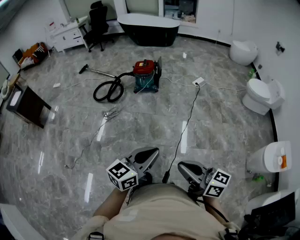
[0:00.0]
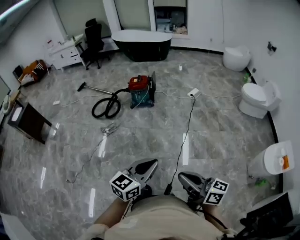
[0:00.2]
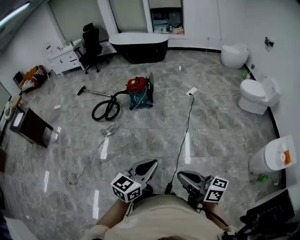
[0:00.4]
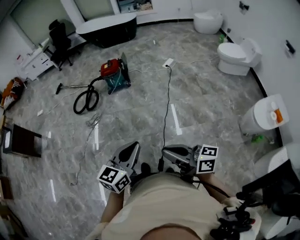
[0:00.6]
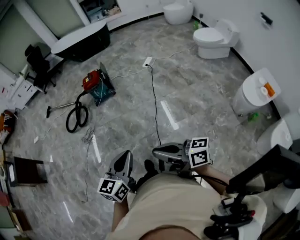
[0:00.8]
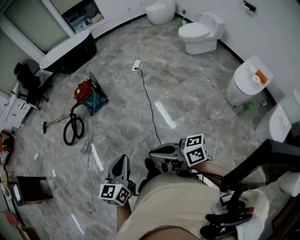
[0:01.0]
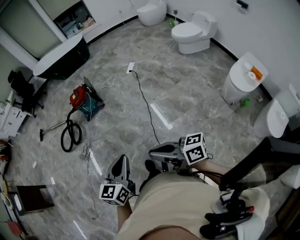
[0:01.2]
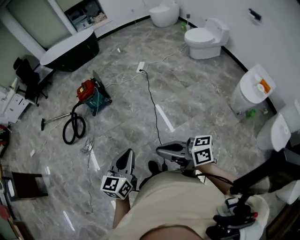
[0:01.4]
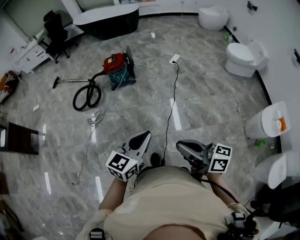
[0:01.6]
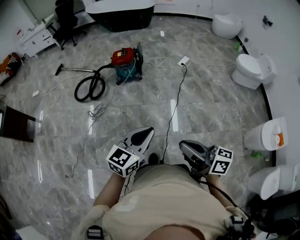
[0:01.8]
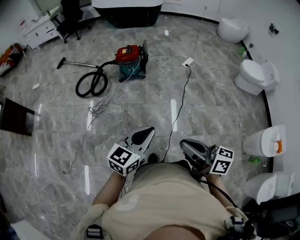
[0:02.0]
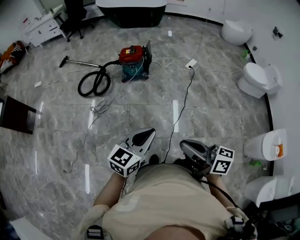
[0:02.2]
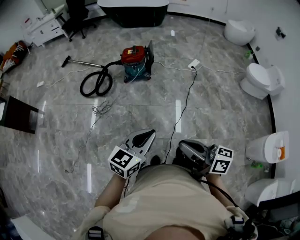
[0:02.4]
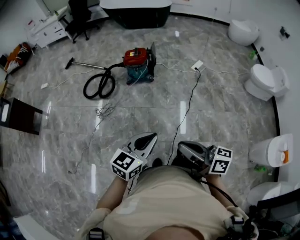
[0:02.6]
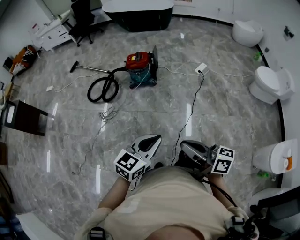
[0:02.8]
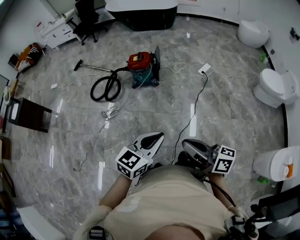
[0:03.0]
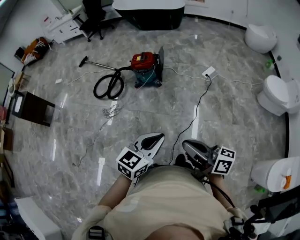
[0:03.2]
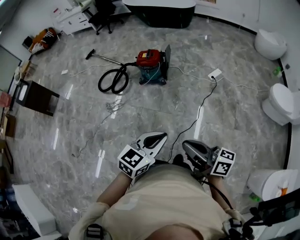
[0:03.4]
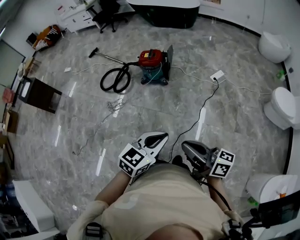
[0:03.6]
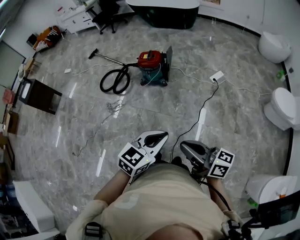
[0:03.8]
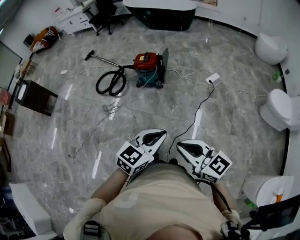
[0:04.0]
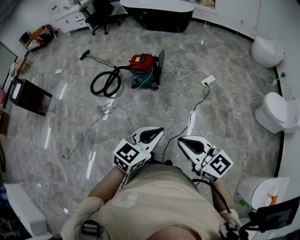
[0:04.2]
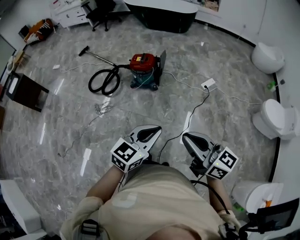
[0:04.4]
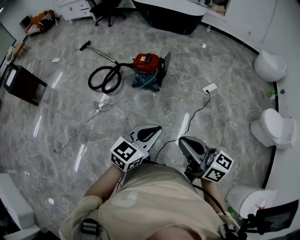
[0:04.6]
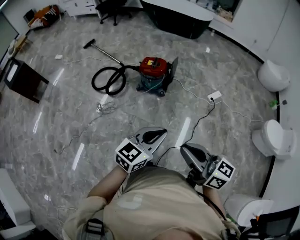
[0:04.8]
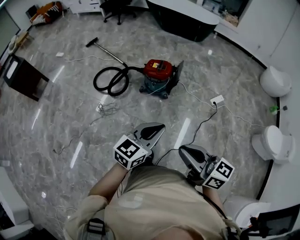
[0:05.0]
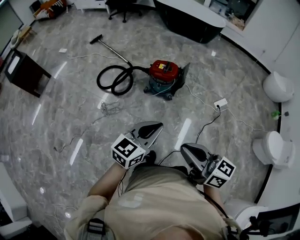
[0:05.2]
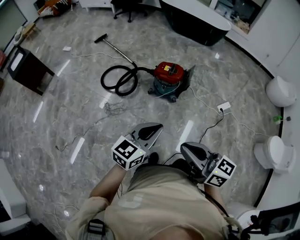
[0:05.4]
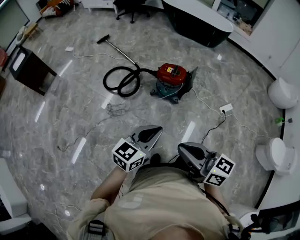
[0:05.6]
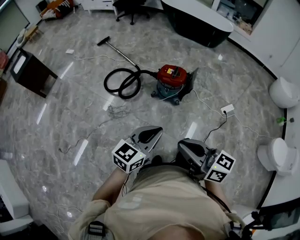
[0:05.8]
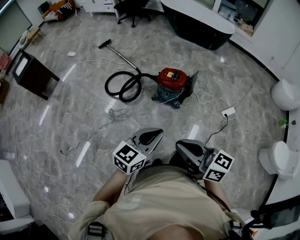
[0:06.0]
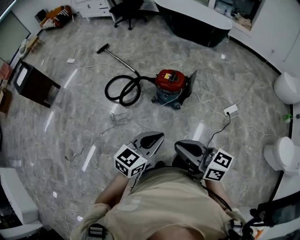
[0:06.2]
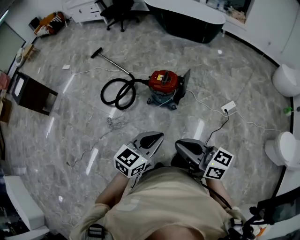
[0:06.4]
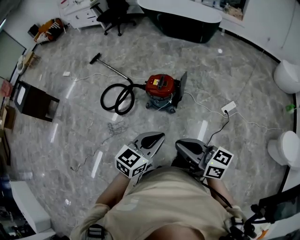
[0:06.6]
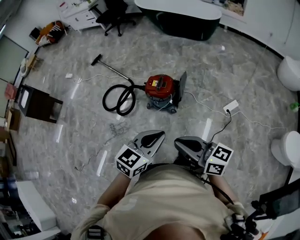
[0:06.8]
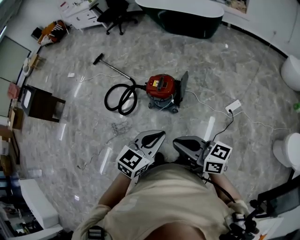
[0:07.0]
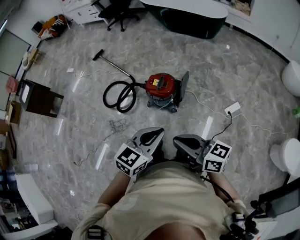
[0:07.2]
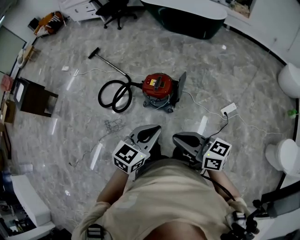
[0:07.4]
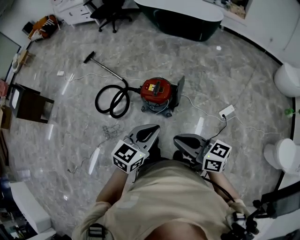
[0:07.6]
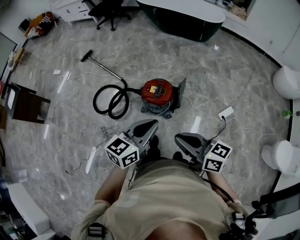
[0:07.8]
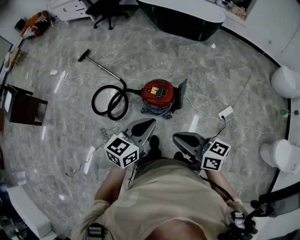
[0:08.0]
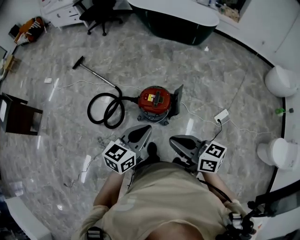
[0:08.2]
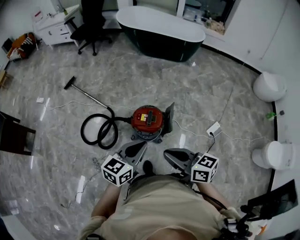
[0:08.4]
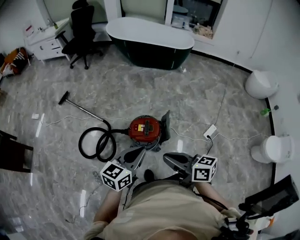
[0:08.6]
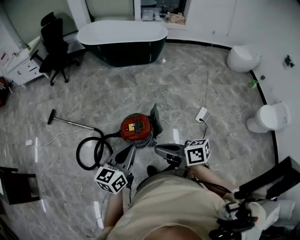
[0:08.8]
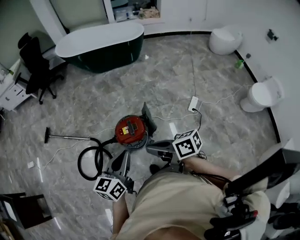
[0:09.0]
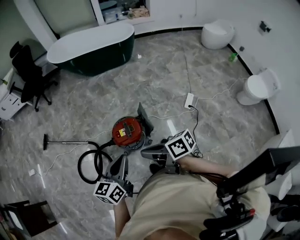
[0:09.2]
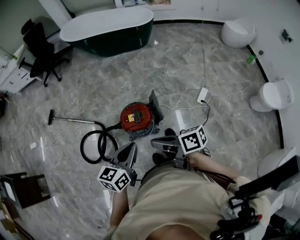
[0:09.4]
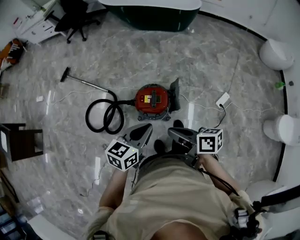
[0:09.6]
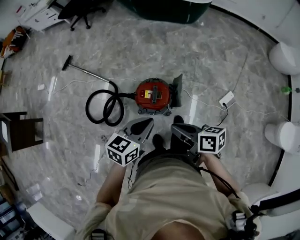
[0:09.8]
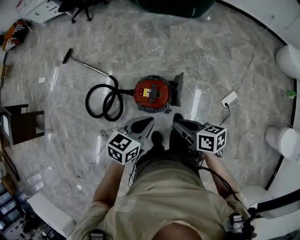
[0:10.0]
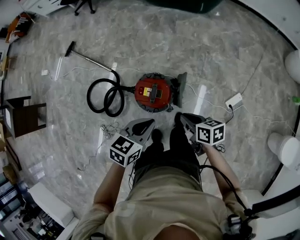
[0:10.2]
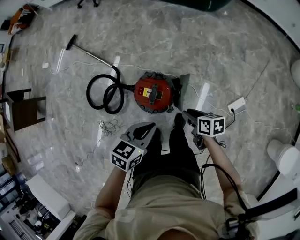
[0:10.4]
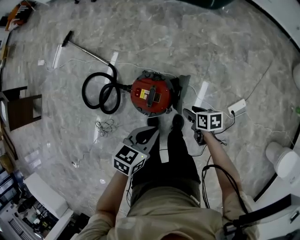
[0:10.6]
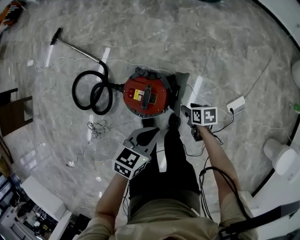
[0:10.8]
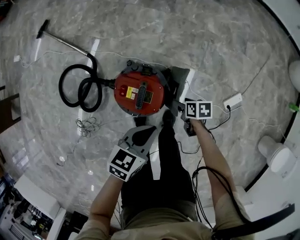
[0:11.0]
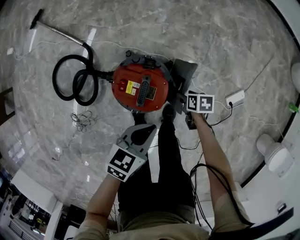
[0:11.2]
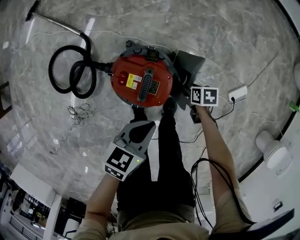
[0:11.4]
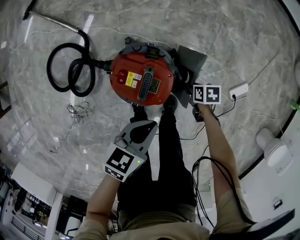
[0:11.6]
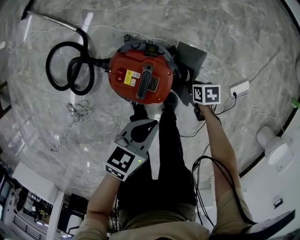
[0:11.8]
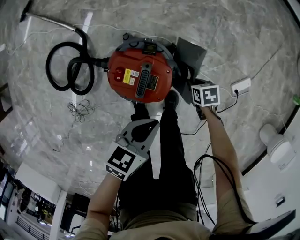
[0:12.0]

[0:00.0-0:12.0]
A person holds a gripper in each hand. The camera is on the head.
0:00.0 to 0:01.6: The grippers both shift forward by approximately 10 cm.
0:01.6 to 0:03.0: Both grippers travel together forward, approximately 15 cm.
0:03.0 to 0:04.4: The two grippers go roughly 15 cm forward and to the right. The right gripper turns by roughly 30 degrees.
0:04.4 to 0:06.0: The grippers both shift forward and to the left by about 30 cm.
0:06.0 to 0:07.6: Both grippers travel together forward and to the right, roughly 30 cm.
0:07.6 to 0:09.0: Both grippers travel together forward and to the left, roughly 20 cm. The right gripper swivels about 30 degrees.
0:09.0 to 0:10.4: The right gripper travels downward, forward and to the right by roughly 40 cm, and changes its angle by some 30 degrees, while the left gripper moves downward, to the right and forward, about 25 cm, and rotates approximately 30 degrees.
0:10.4 to 0:12.0: The grippers both shift downward by approximately 30 cm. The right gripper tips its fingers downward by roughly 30 degrees, and opens and closes again.

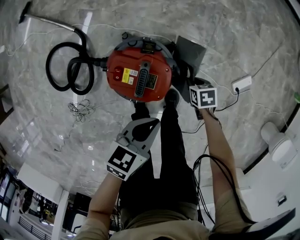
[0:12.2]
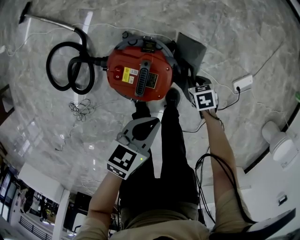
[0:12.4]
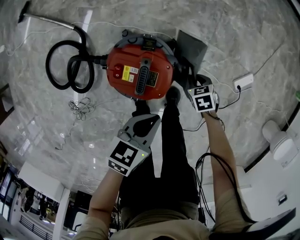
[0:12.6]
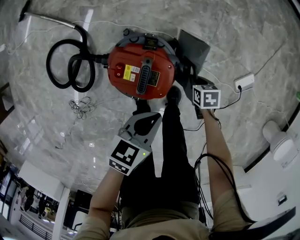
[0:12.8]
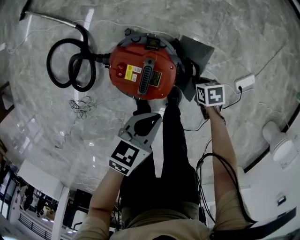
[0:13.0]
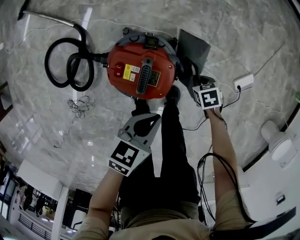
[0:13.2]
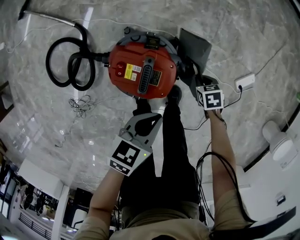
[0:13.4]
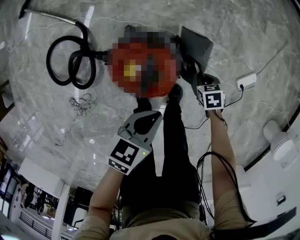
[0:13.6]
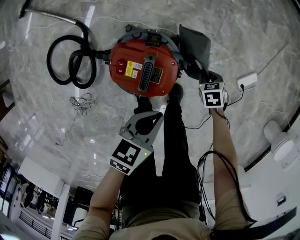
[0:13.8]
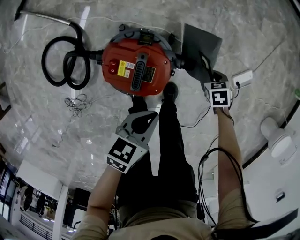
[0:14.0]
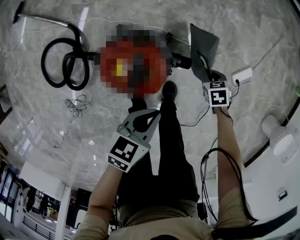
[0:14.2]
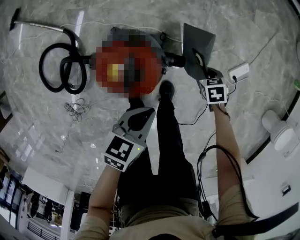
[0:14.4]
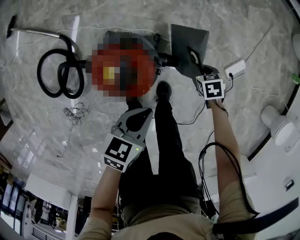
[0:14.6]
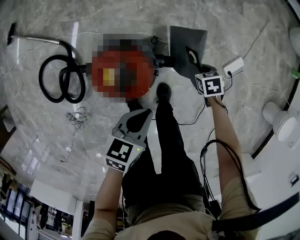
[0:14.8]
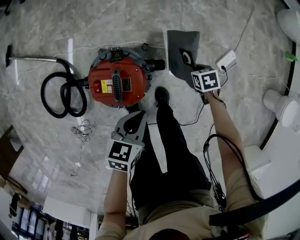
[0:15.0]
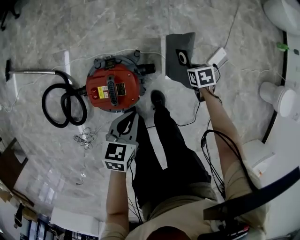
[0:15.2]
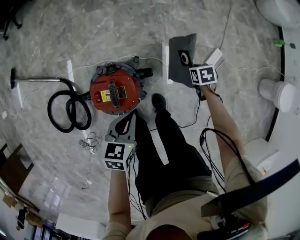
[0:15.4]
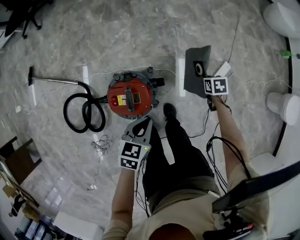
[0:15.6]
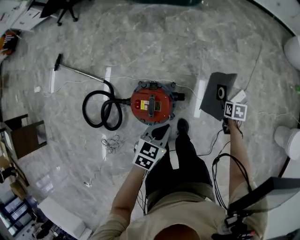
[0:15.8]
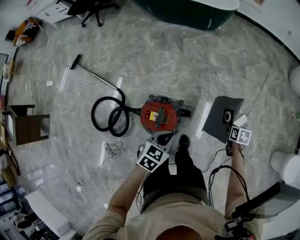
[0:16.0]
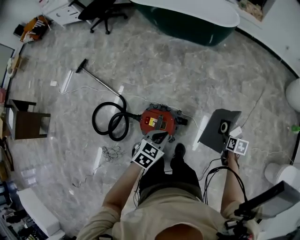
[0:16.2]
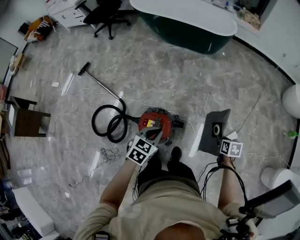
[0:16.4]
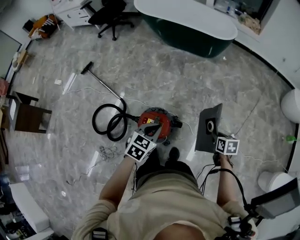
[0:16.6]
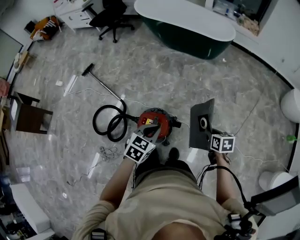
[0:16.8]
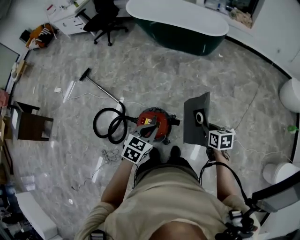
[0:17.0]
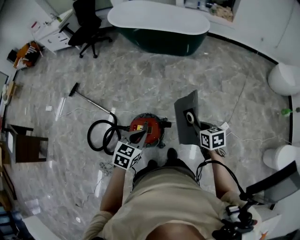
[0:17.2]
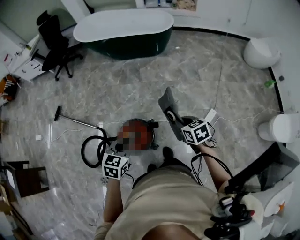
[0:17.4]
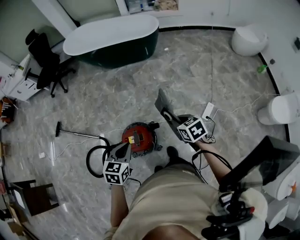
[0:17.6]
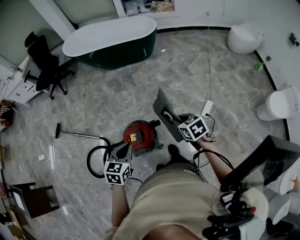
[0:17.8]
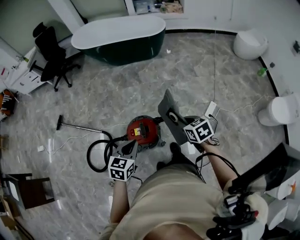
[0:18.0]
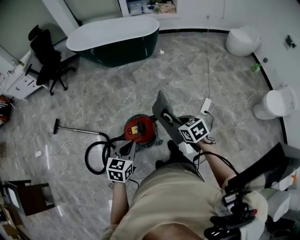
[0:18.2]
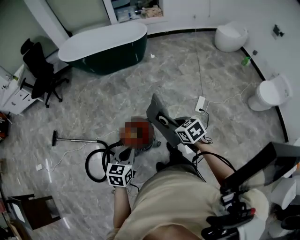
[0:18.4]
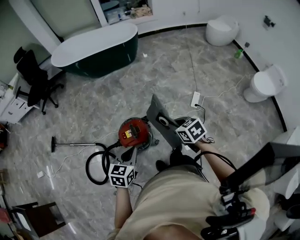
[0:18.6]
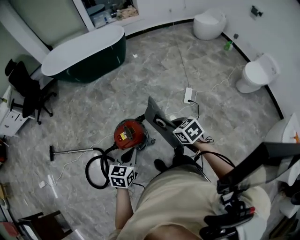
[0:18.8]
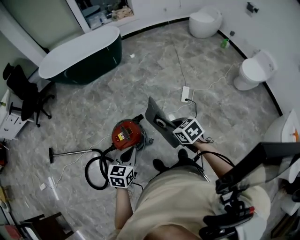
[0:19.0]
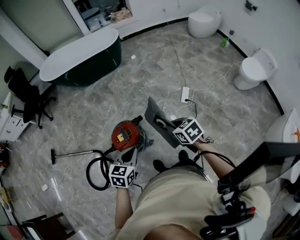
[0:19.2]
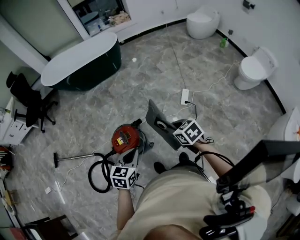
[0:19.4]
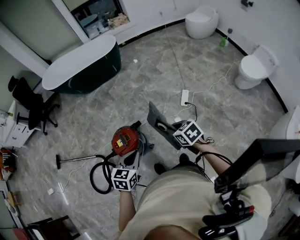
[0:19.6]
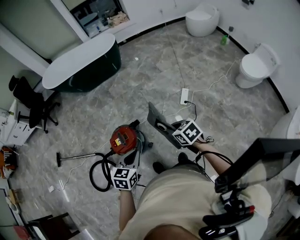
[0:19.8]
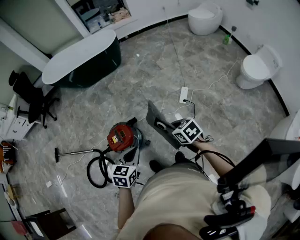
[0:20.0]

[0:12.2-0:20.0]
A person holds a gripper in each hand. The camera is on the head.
0:12.2 to 0:13.8: The grippers make only small movements.
0:13.8 to 0:15.4: The right gripper moves about 20 cm, and swivels some 30 degrees; the left gripper travels upward by approximately 5 cm.
0:15.4 to 0:16.8: Both grippers travel together upward, approximately 30 cm. The right gripper rotates about 30 degrees.
0:16.8 to 0:18.4: The right gripper shifts roughly 25 cm backward, to the left and upward. Meanwhile the left gripper moves backward and to the left, approximately 15 cm.
0:18.4 to 0:20.0: The right gripper moves to the right and backward, roughly 20 cm. Meanwhile the left gripper travels to the right by about 20 cm.

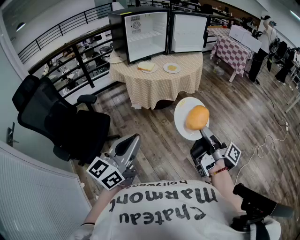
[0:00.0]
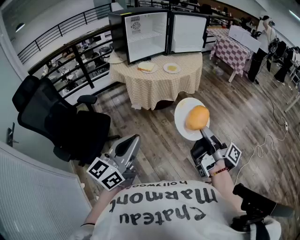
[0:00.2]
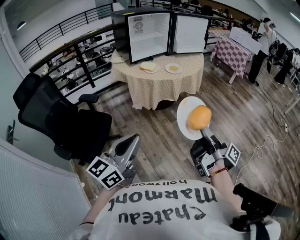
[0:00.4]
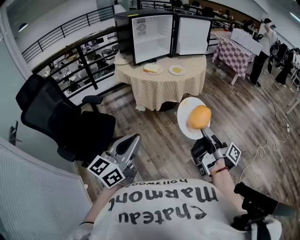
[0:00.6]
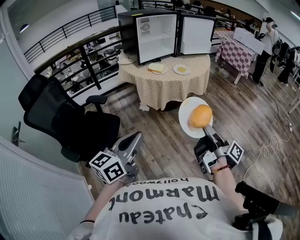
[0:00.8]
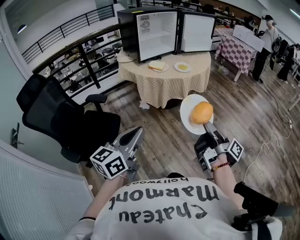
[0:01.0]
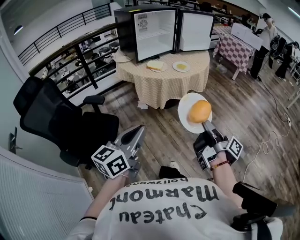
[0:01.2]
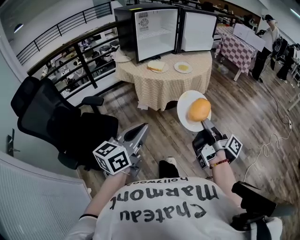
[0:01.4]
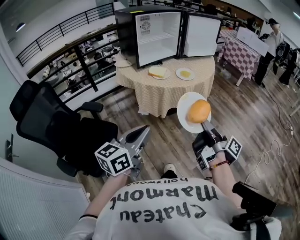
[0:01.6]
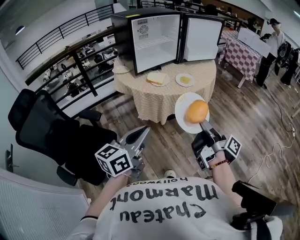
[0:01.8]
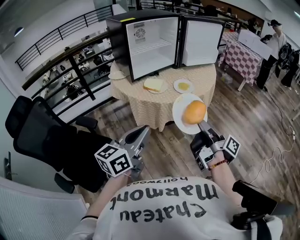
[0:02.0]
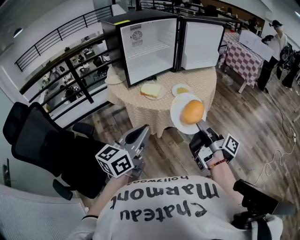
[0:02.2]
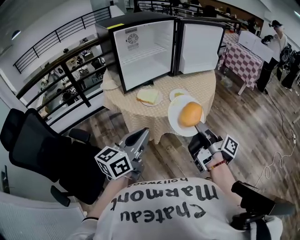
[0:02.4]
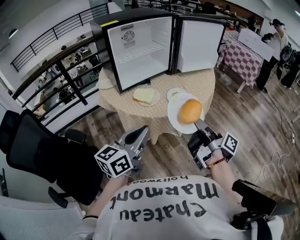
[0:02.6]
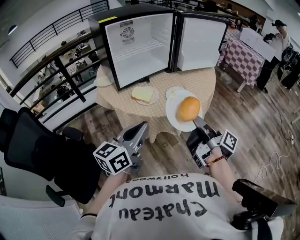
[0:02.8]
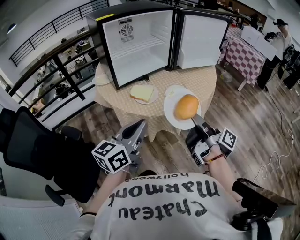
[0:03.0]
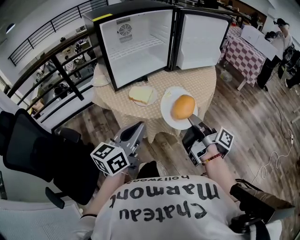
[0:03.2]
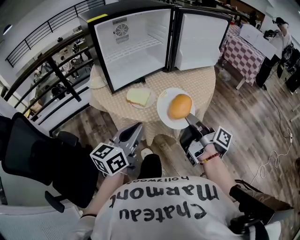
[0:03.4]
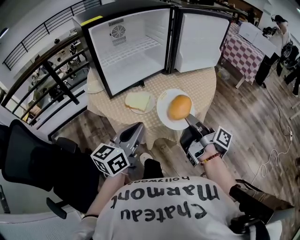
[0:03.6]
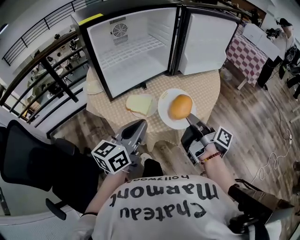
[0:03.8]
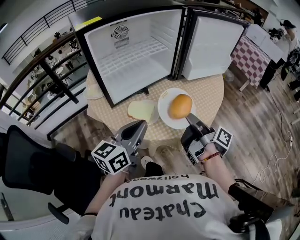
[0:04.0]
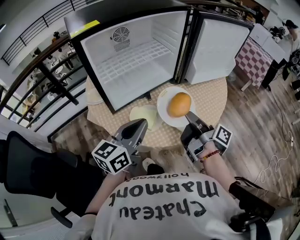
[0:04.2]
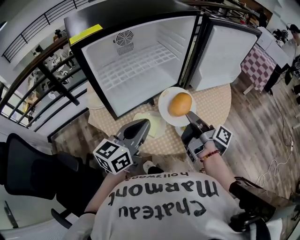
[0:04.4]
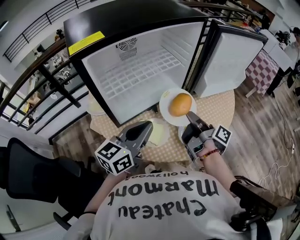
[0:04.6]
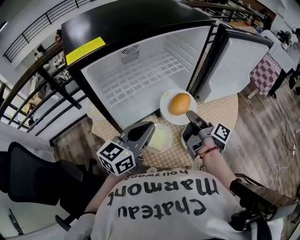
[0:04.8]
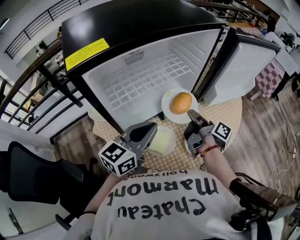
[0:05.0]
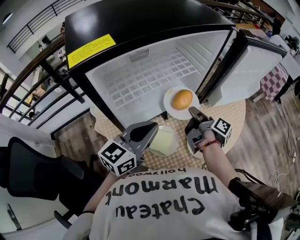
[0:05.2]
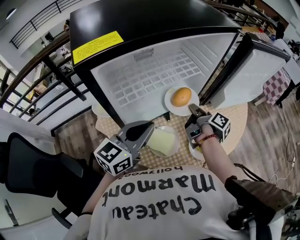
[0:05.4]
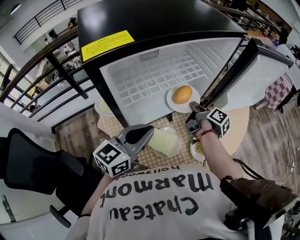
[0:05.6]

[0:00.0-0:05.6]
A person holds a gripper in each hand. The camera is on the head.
0:00.0 to 0:01.4: The right gripper is displaced to the left and forward by about 10 cm. Meanwhile the left gripper is displaced forward and to the left by roughly 10 cm.
0:01.4 to 0:02.8: Both grippers move forward, some 35 cm.
0:02.8 to 0:04.2: Both grippers travel together forward, some 20 cm.
0:04.2 to 0:05.6: The left gripper goes approximately 10 cm forward and to the left; the right gripper travels forward and to the left by some 25 cm, and swivels about 20 degrees.
